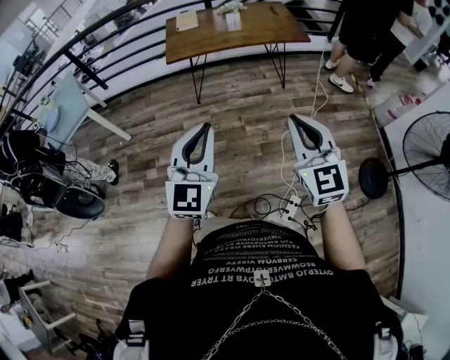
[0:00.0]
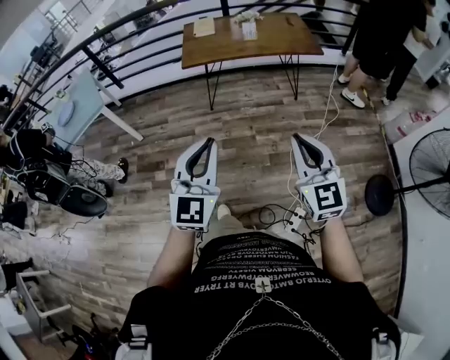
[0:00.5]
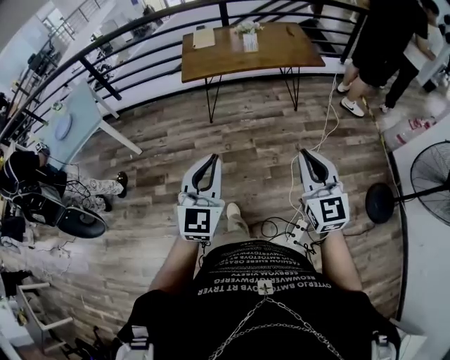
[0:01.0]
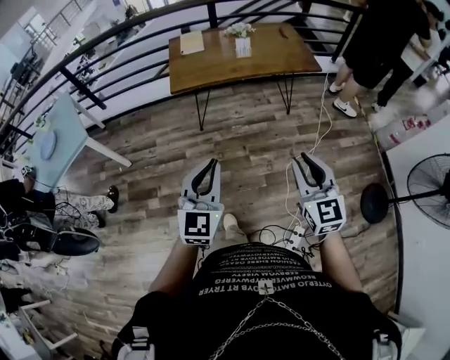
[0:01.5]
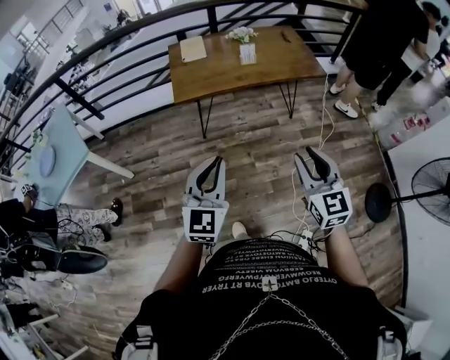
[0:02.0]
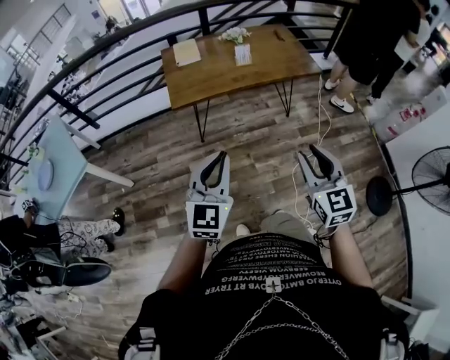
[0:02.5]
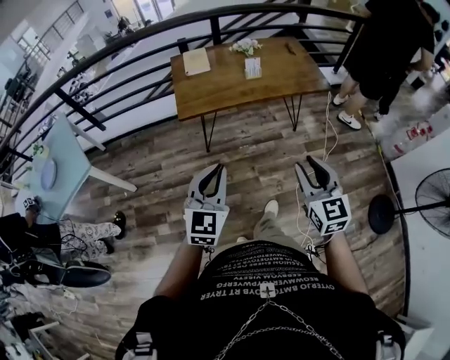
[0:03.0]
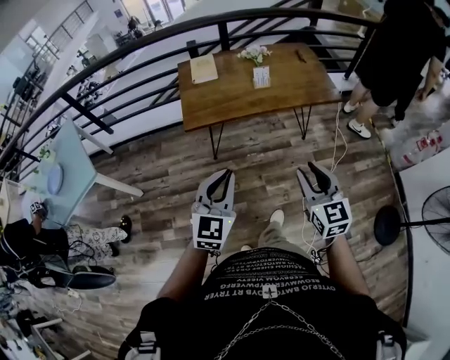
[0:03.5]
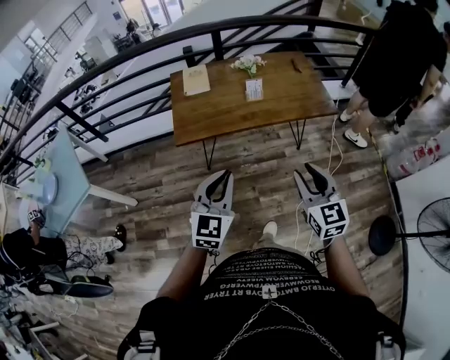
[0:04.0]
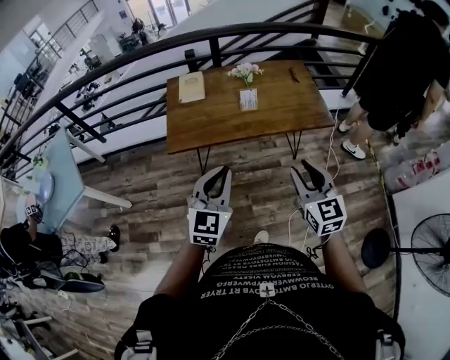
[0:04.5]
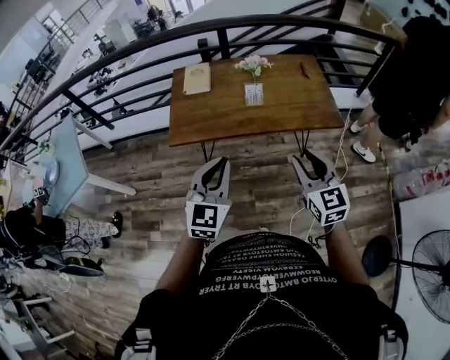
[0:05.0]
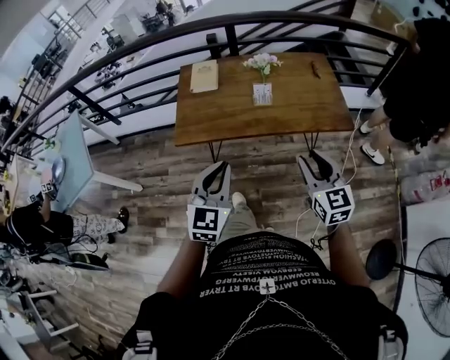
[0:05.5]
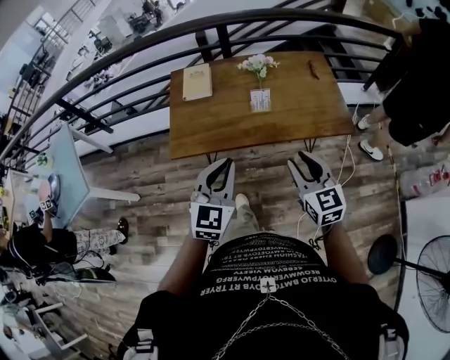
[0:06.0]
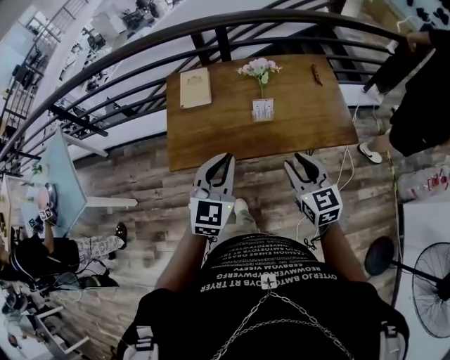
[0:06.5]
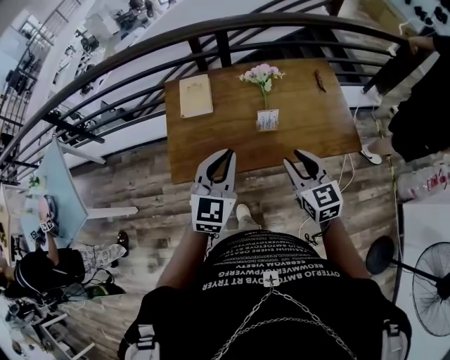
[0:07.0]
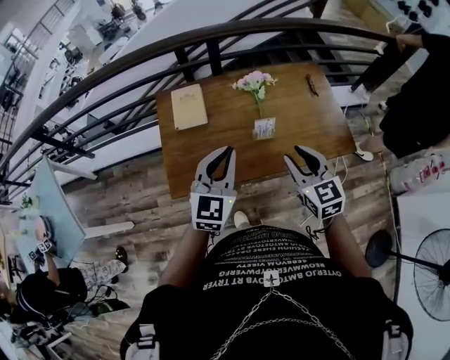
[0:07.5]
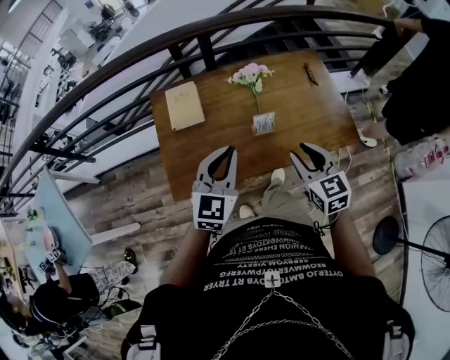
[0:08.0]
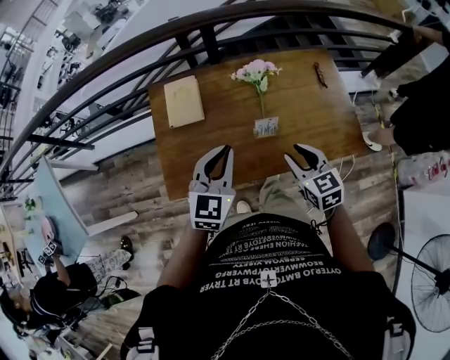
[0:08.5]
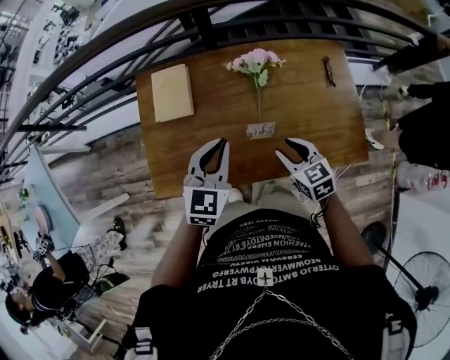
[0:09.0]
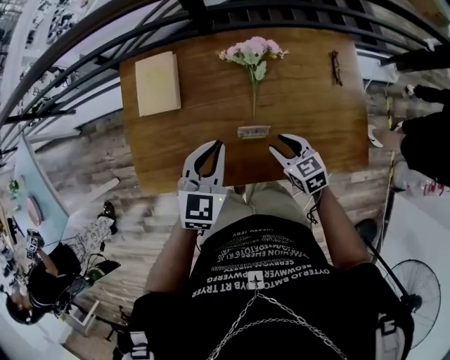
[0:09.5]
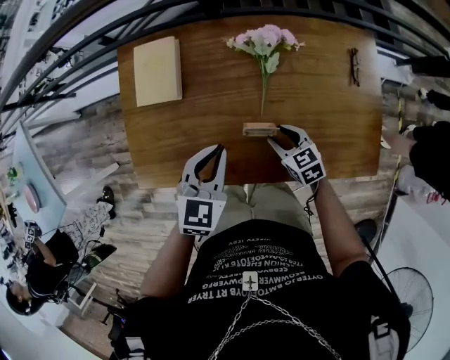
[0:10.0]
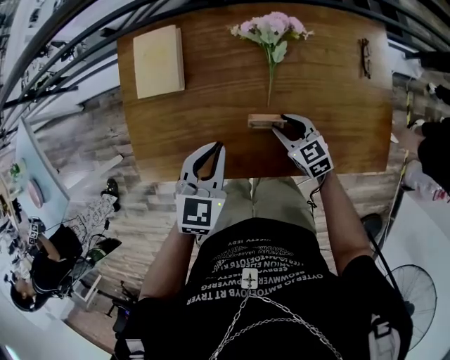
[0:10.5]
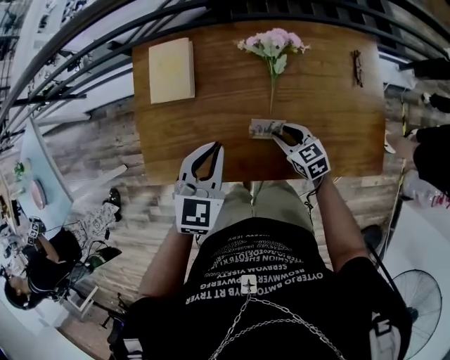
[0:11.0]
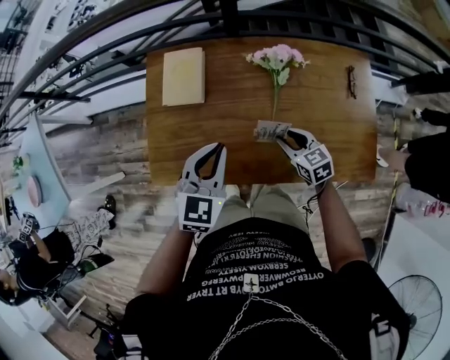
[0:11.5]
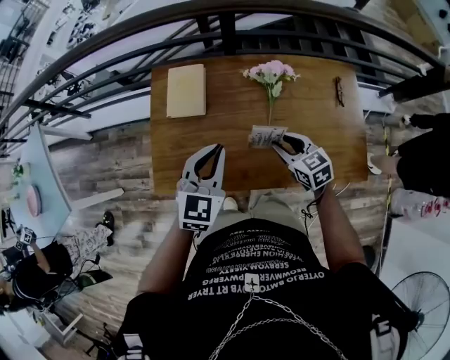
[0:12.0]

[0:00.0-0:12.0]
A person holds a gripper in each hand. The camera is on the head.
0:00.0 to 0:02.0: The left gripper moves forward and to the left, roughly 25 cm. The right gripper is displaced forward by about 20 cm, and opens.
0:02.0 to 0:04.0: Both grippers travel together forward, approximately 20 cm.
0:04.0 to 0:06.0: The two grippers go approximately 20 cm forward.
0:06.0 to 0:08.0: Both grippers travel together forward, approximately 20 cm.
0:08.0 to 0:10.0: The right gripper goes roughly 35 cm downward and forward, and changes its angle by some 30 degrees. The left gripper travels downward and forward by roughly 20 cm, and changes its angle by about 30 degrees.
0:10.0 to 0:12.0: The right gripper moves upward, approximately 15 cm, while the left gripper shifts some 10 cm upward and to the left.

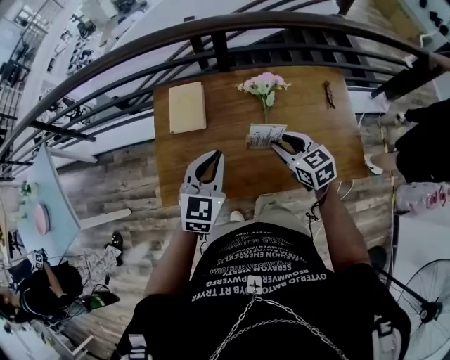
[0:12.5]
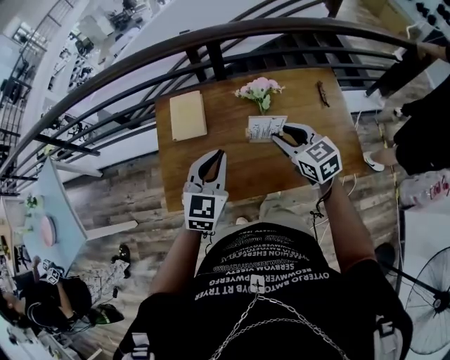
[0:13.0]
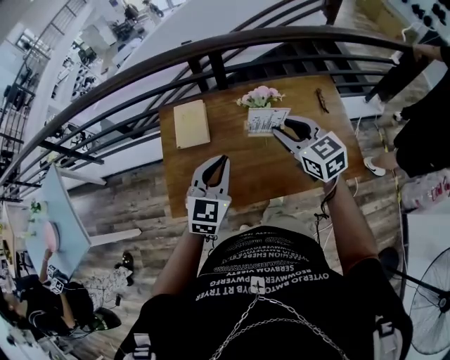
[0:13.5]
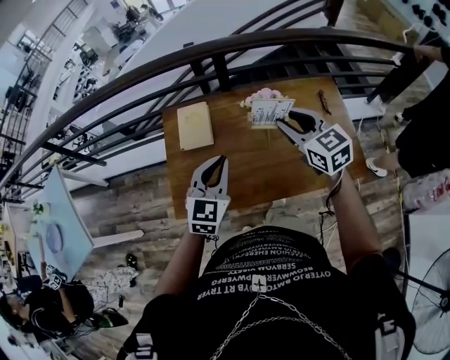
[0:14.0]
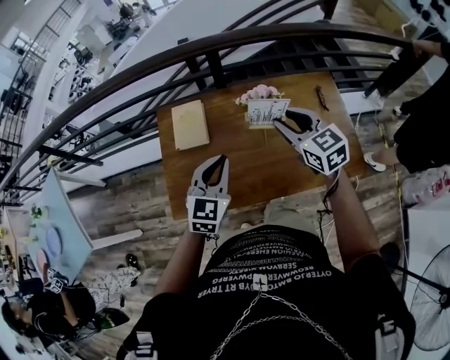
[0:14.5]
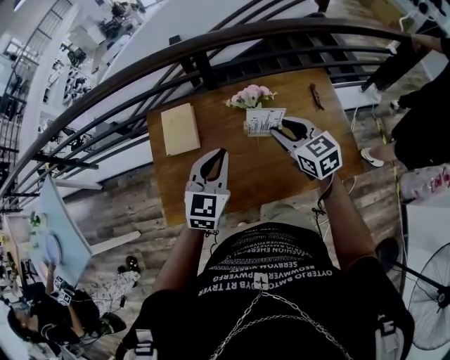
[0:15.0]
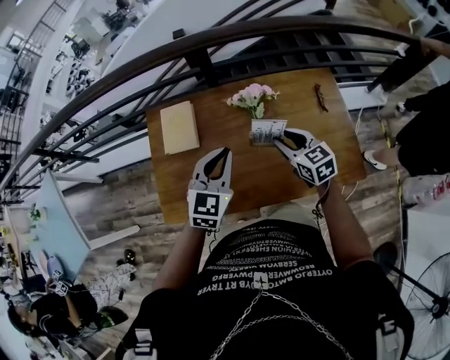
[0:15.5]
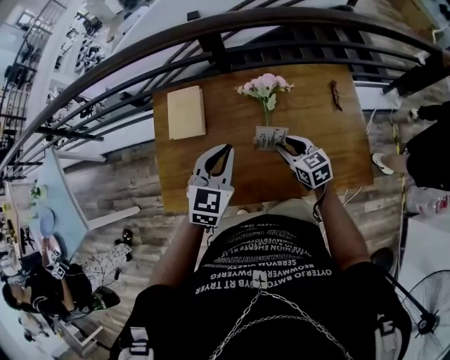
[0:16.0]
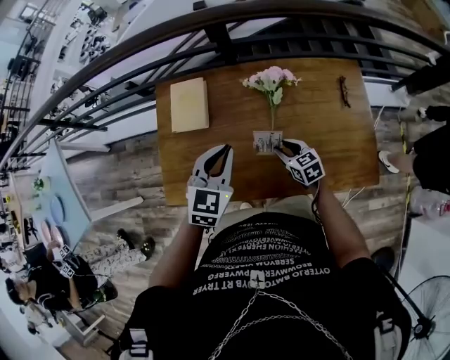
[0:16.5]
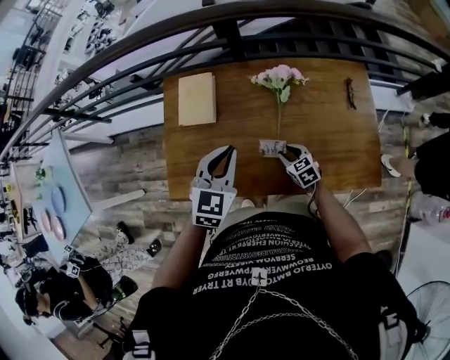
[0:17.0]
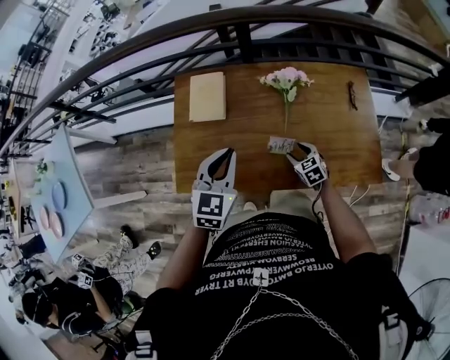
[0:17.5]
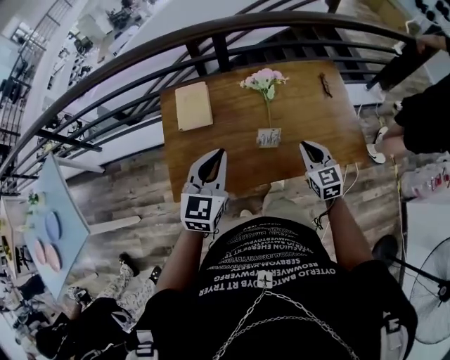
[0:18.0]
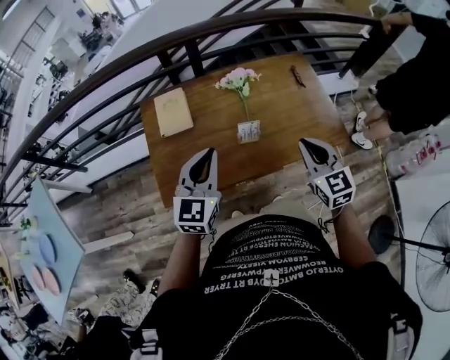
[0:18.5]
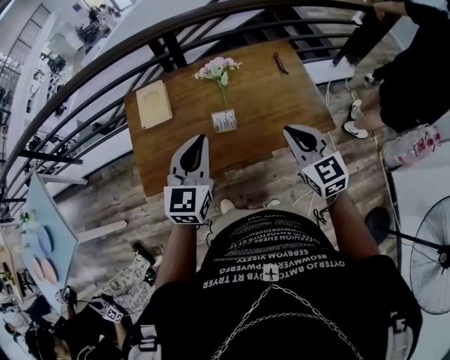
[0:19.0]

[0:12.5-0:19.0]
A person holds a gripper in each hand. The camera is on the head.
0:12.5 to 0:14.5: The right gripper goes approximately 15 cm upward.
0:14.5 to 0:17.0: The right gripper travels downward by some 35 cm, and rotates about 30 degrees. The left gripper moves downward, some 5 cm.
0:17.0 to 0:19.0: The right gripper is displaced upward and backward by some 40 cm, turns by some 30 degrees, and closes up, while the left gripper moves backward and upward, roughly 20 cm, and swivels some 20 degrees.

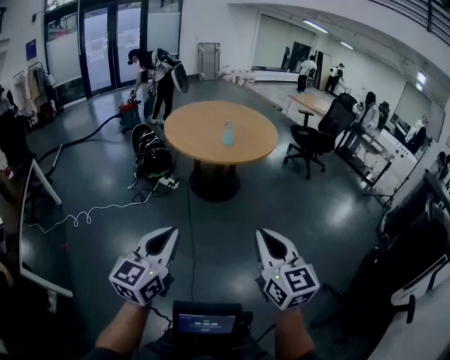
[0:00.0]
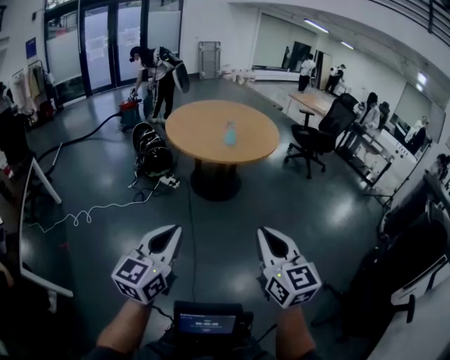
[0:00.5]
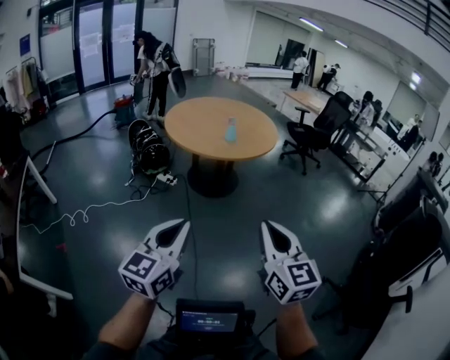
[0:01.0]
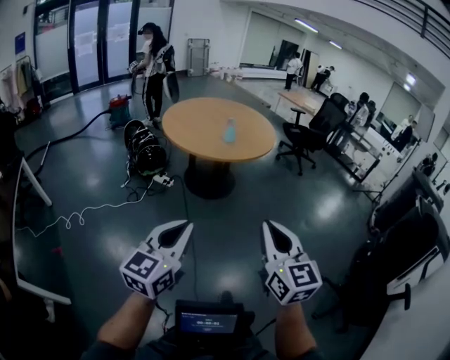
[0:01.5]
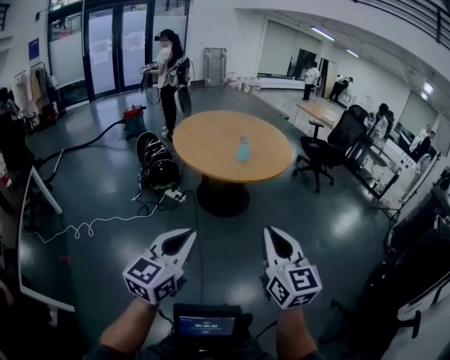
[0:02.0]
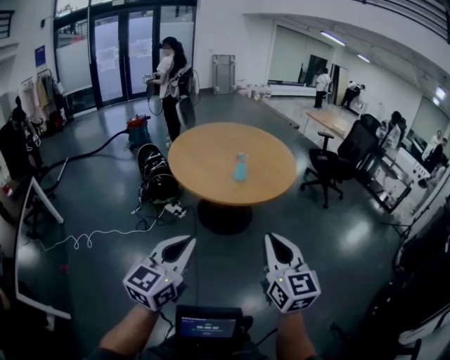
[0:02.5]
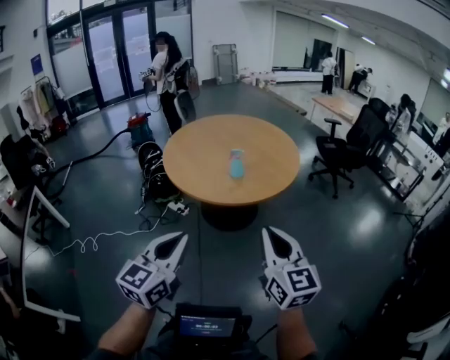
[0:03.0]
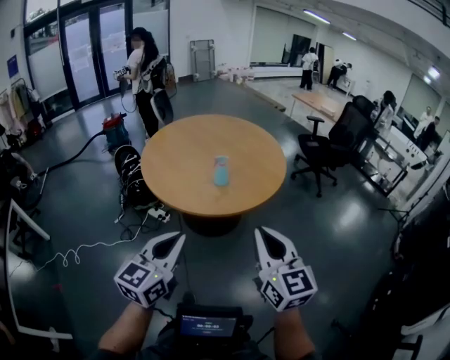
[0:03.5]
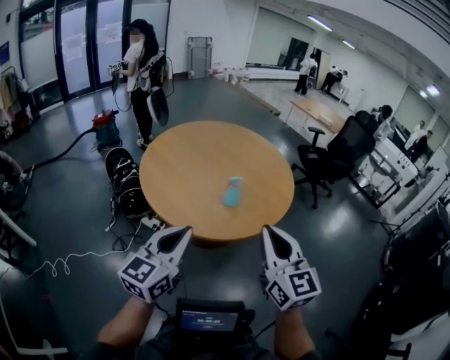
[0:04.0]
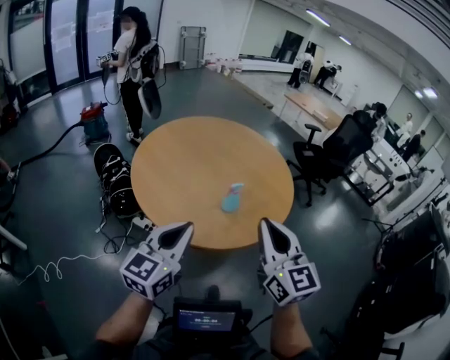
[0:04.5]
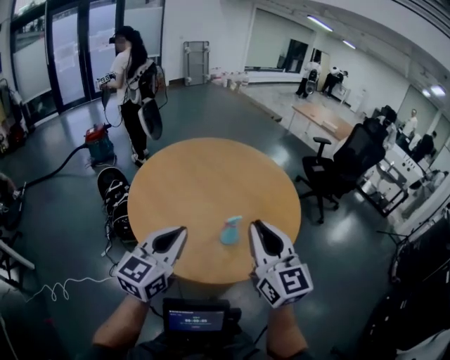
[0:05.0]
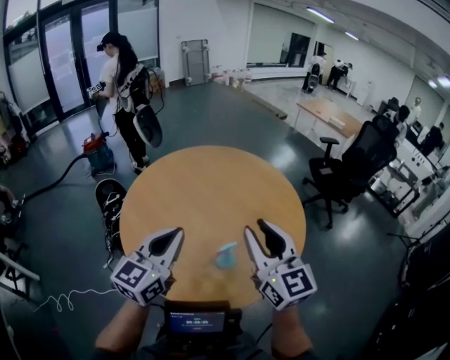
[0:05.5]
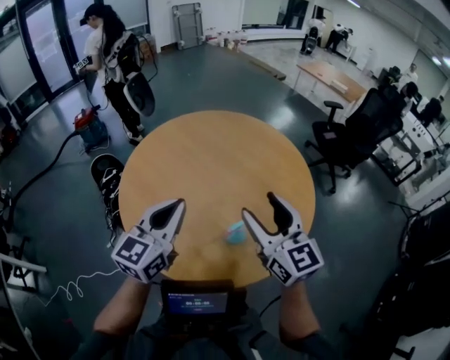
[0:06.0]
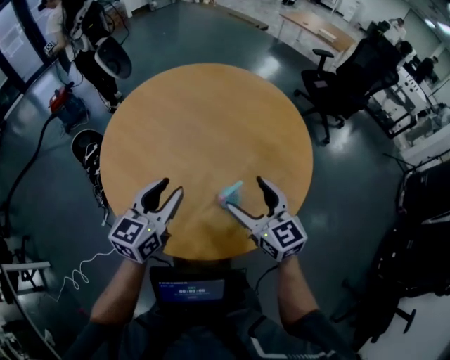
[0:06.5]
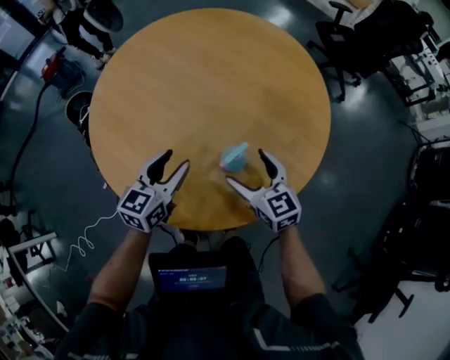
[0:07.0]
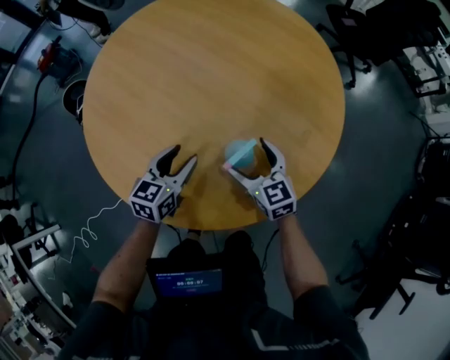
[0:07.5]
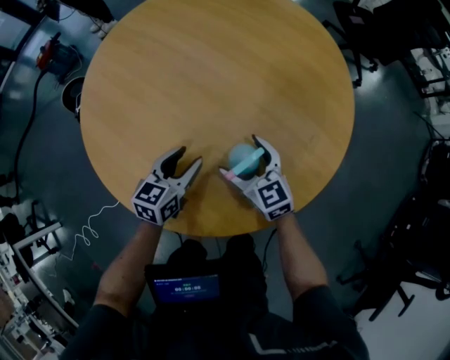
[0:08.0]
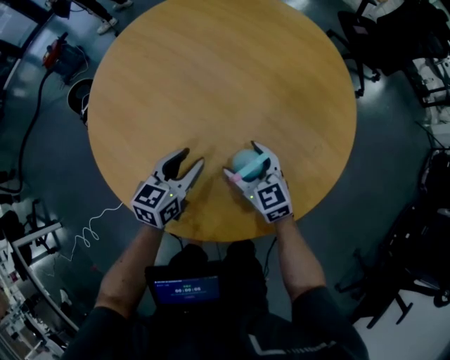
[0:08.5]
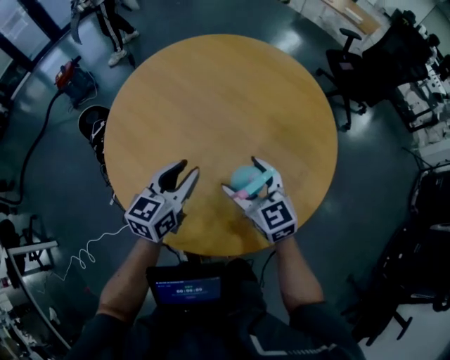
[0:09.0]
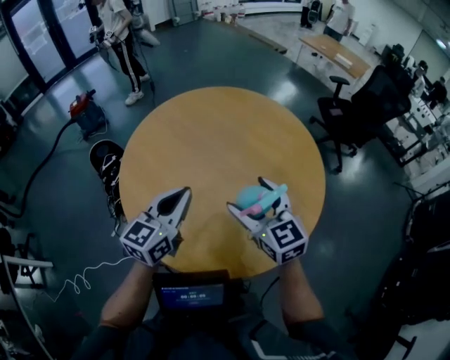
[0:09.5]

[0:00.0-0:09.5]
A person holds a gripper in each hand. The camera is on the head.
0:00.0 to 0:02.0: The right gripper goes about 15 cm forward and to the left. The left gripper shifts approximately 10 cm forward.
0:02.0 to 0:04.0: Both grippers move forward, some 40 cm.
0:04.0 to 0:05.5: The two grippers go roughly 30 cm forward.
0:05.5 to 0:07.5: Both grippers move downward, about 35 cm. The right gripper tilts its fingers approximately 30 degrees downward, and opens up. Meanwhile the left gripper rotates approximately 30 degrees, and opens.
0:07.5 to 0:09.5: The two grippers go roughly 20 cm upward. The left gripper turns by roughly 20 degrees, and closes its fingers.
